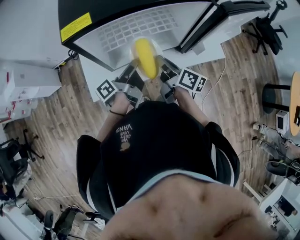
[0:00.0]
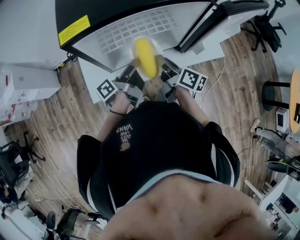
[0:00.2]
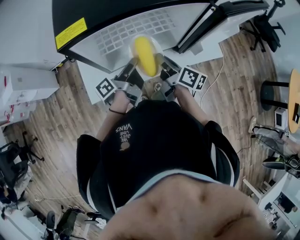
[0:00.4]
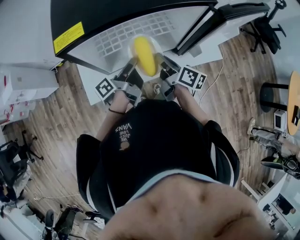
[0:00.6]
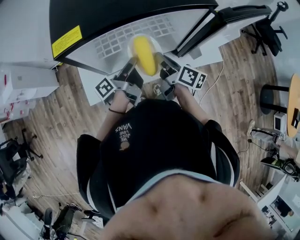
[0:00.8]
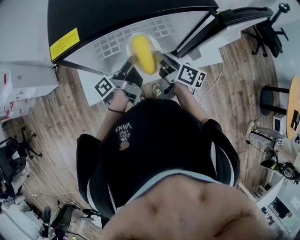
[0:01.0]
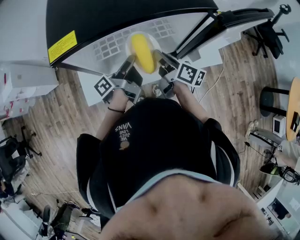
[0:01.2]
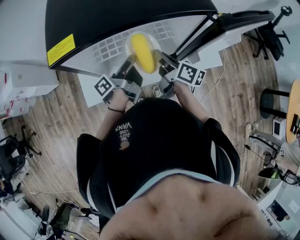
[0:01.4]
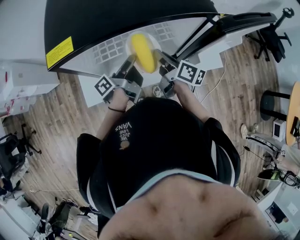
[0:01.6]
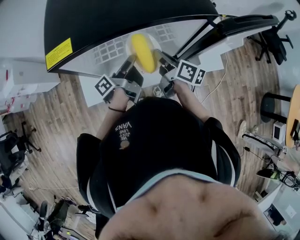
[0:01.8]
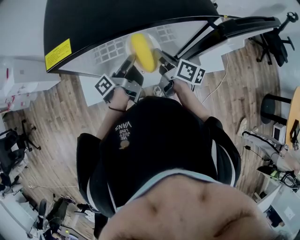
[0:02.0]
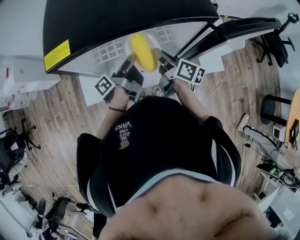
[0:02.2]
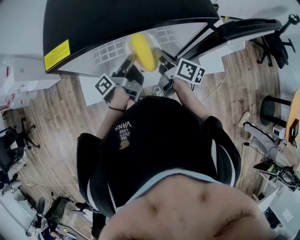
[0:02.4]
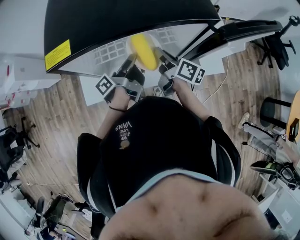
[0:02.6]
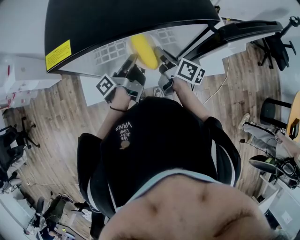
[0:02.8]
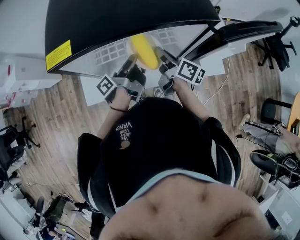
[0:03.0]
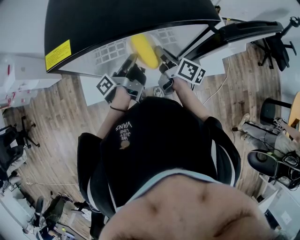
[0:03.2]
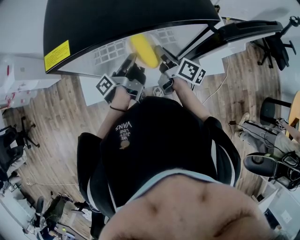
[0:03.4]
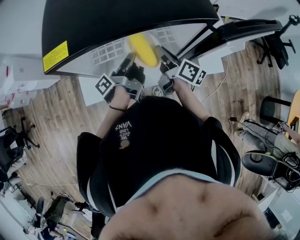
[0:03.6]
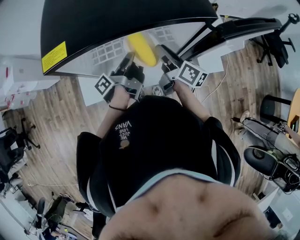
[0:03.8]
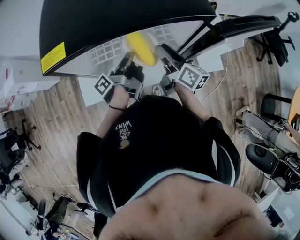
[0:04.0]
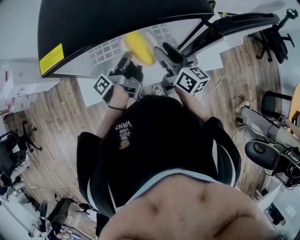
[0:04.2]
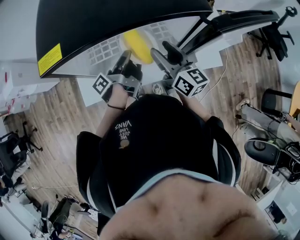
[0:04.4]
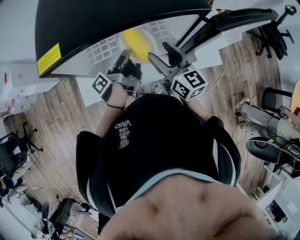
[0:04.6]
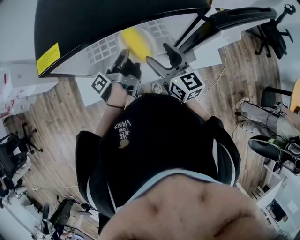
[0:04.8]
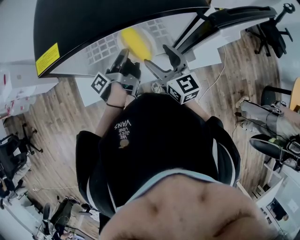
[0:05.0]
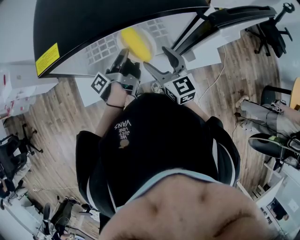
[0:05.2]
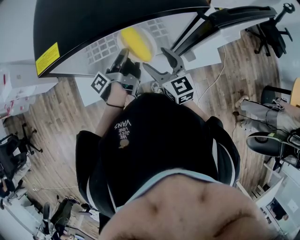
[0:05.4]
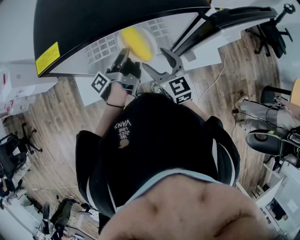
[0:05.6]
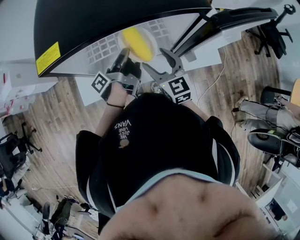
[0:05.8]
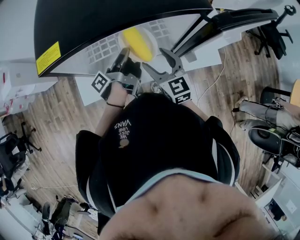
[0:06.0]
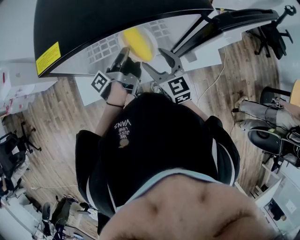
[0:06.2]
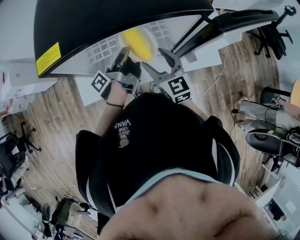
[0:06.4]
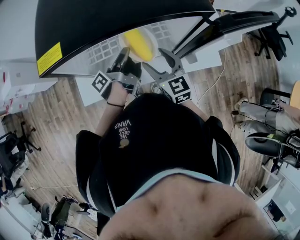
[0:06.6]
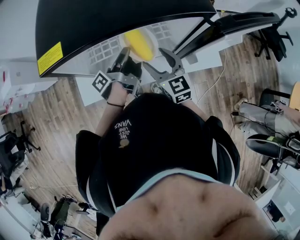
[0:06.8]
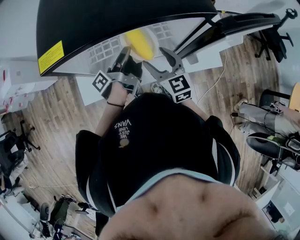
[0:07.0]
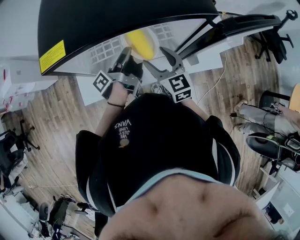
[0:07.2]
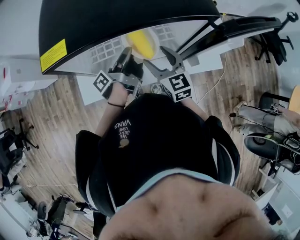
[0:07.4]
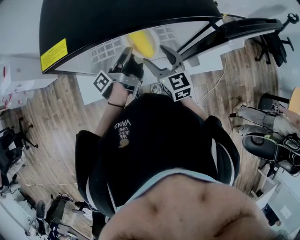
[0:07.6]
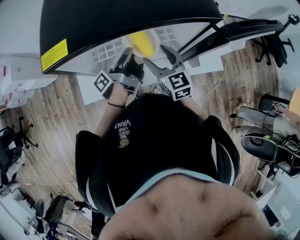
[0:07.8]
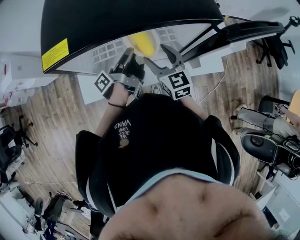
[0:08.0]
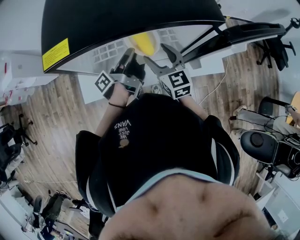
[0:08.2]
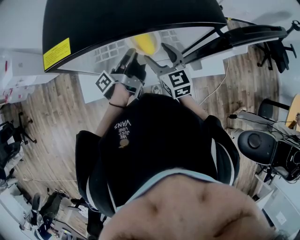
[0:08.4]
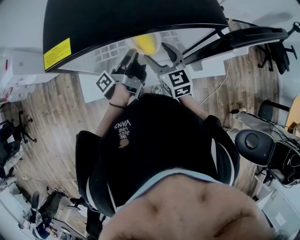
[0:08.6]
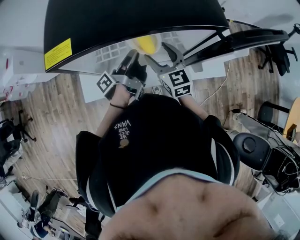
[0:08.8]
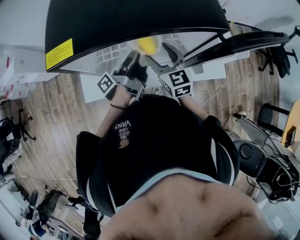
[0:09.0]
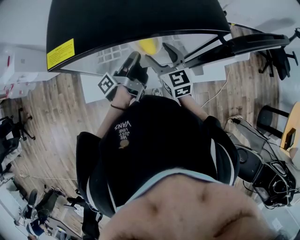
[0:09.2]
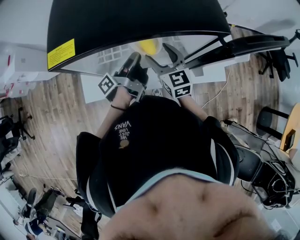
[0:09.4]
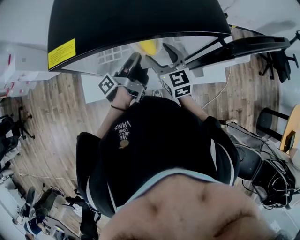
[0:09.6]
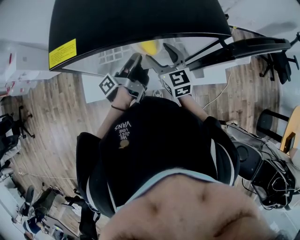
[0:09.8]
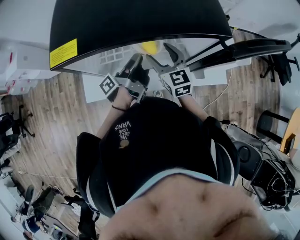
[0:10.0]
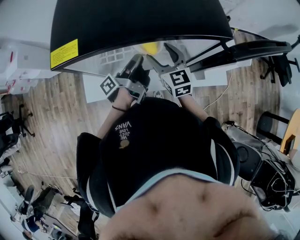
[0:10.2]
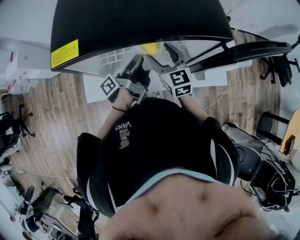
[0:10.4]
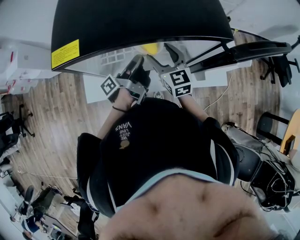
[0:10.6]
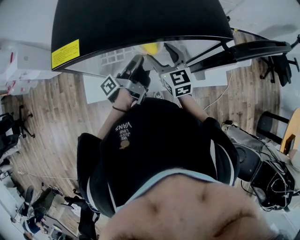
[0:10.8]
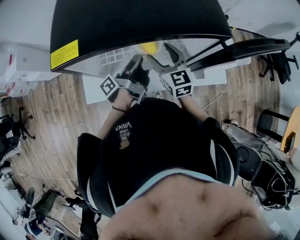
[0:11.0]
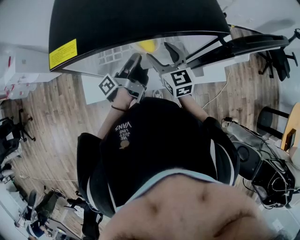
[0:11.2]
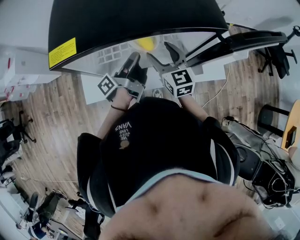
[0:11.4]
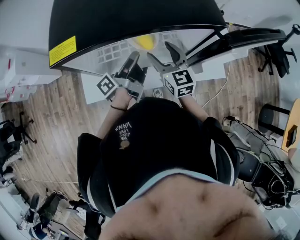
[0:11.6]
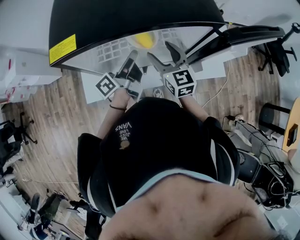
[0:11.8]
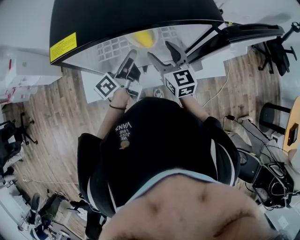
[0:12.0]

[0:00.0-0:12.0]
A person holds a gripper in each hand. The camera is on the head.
0.0 to 1.6 s: The right gripper shifts by some 10 cm.
3.0 to 4.4 s: The right gripper moves upward, some 5 cm, turns by about 30 degrees, and opens its fingers.
4.4 to 6.0 s: The right gripper changes place by about 5 cm, and rotates roughly 30 degrees.

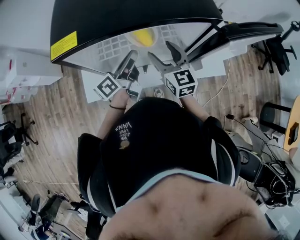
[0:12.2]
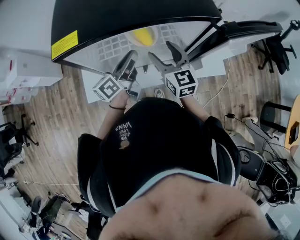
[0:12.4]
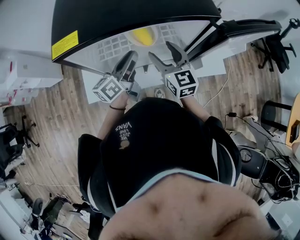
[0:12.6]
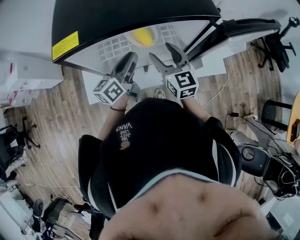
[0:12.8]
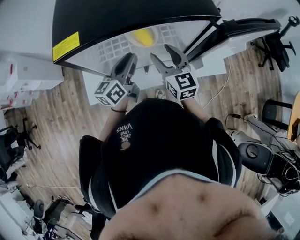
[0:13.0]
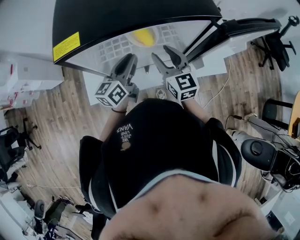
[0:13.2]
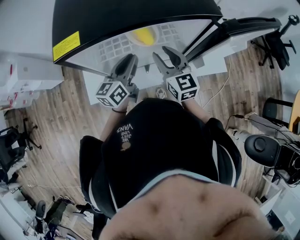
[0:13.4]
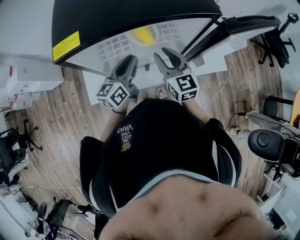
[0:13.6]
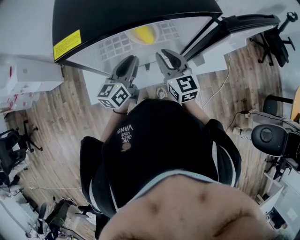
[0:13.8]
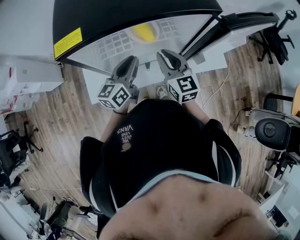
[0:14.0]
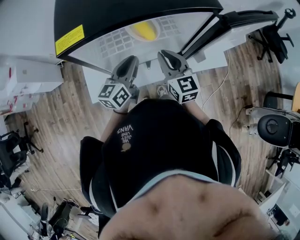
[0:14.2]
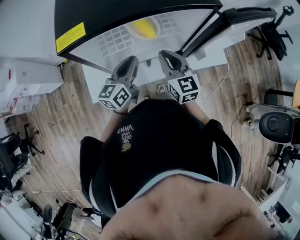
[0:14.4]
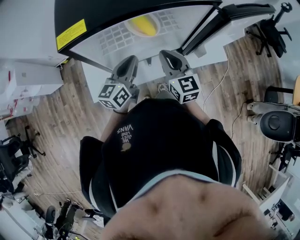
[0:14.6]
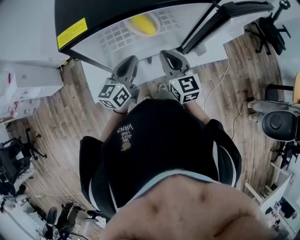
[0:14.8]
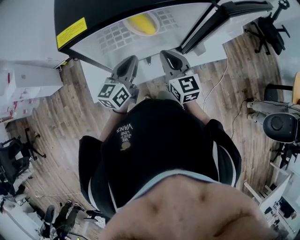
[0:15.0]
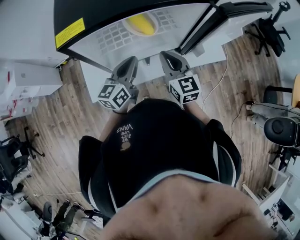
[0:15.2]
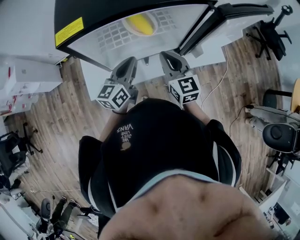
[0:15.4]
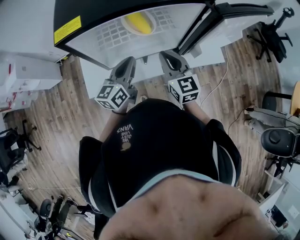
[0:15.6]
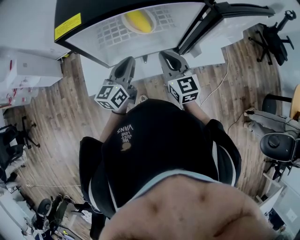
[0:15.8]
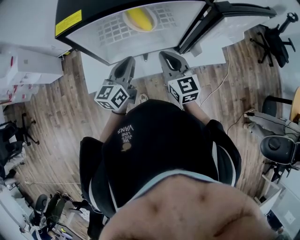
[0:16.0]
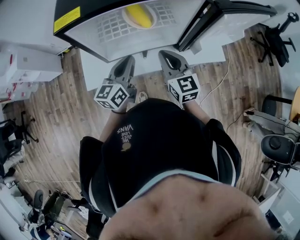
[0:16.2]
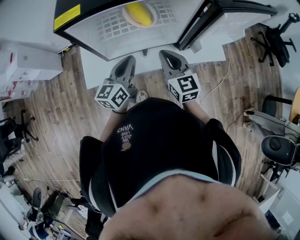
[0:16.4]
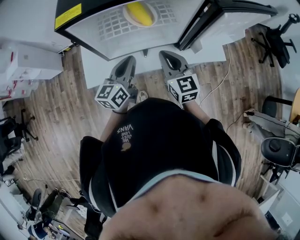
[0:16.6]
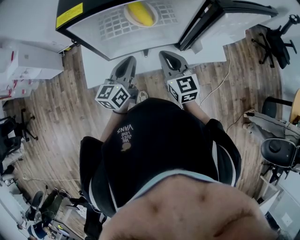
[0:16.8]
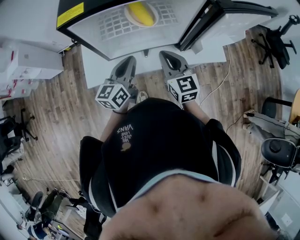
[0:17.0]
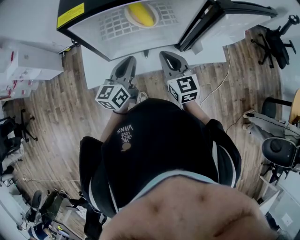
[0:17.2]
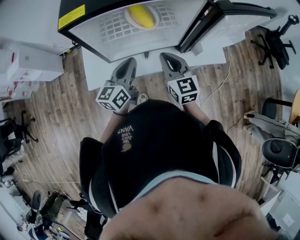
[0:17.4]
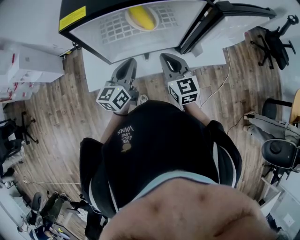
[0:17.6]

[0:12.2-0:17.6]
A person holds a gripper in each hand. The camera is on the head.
12.2 to 13.6 s: The right gripper closes its fingers.

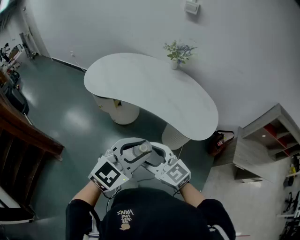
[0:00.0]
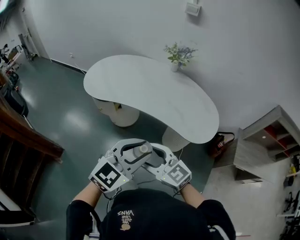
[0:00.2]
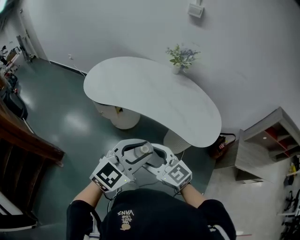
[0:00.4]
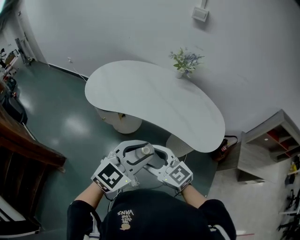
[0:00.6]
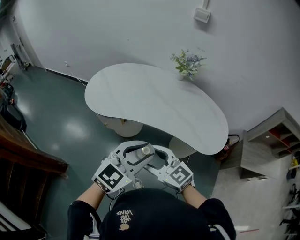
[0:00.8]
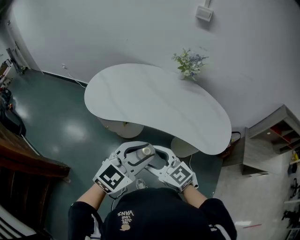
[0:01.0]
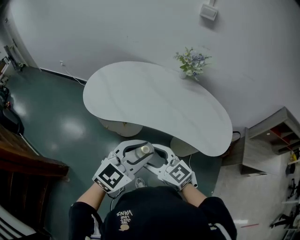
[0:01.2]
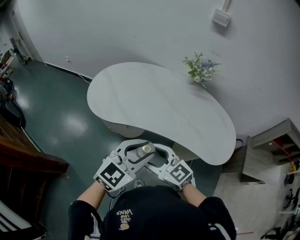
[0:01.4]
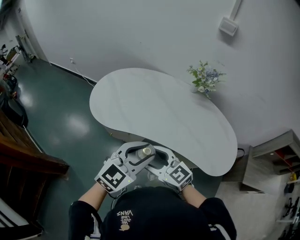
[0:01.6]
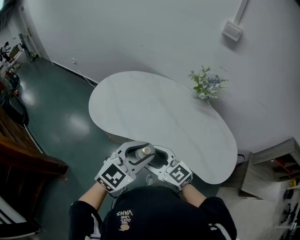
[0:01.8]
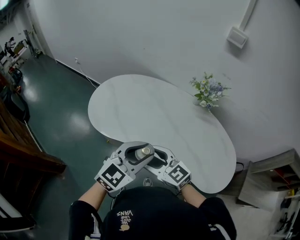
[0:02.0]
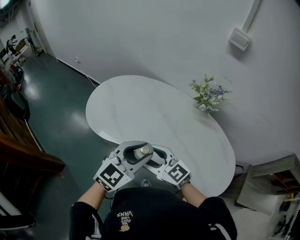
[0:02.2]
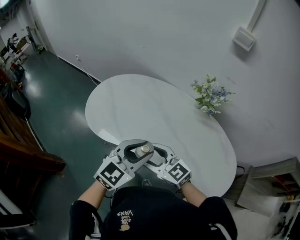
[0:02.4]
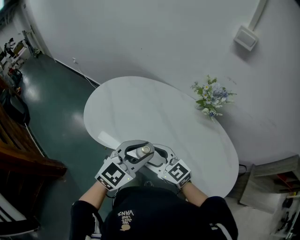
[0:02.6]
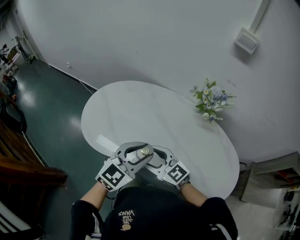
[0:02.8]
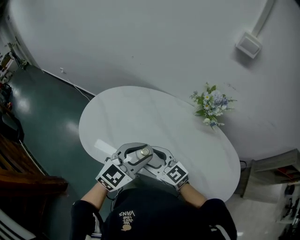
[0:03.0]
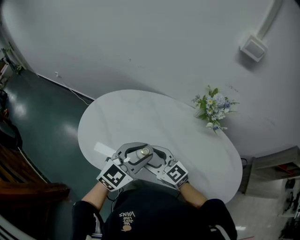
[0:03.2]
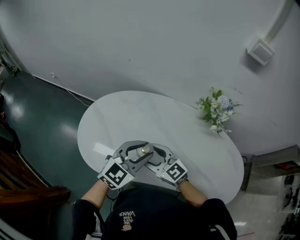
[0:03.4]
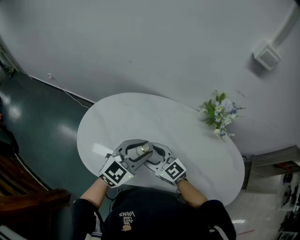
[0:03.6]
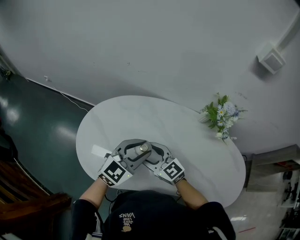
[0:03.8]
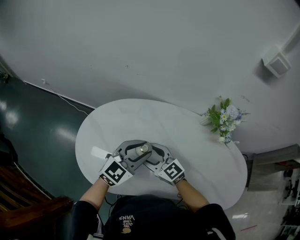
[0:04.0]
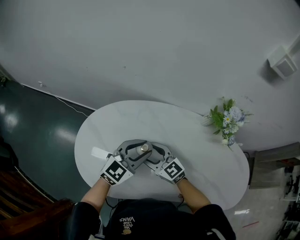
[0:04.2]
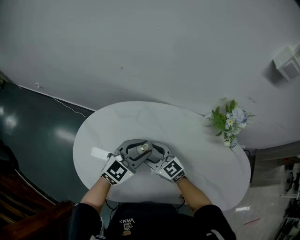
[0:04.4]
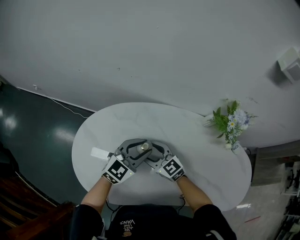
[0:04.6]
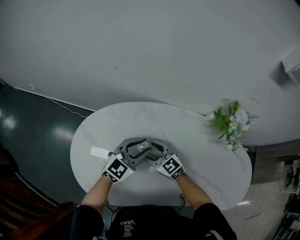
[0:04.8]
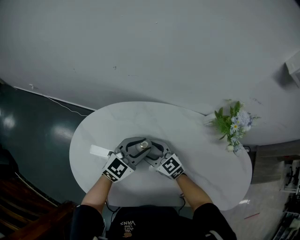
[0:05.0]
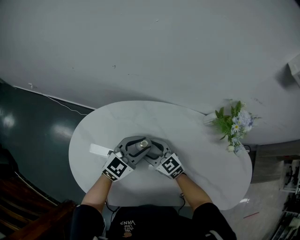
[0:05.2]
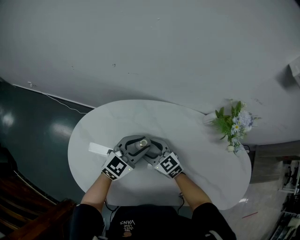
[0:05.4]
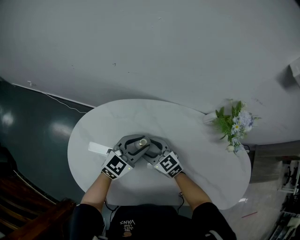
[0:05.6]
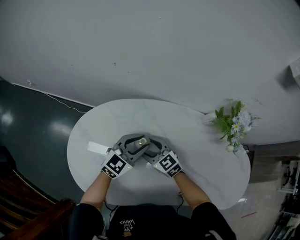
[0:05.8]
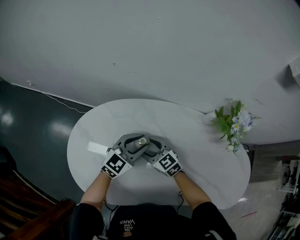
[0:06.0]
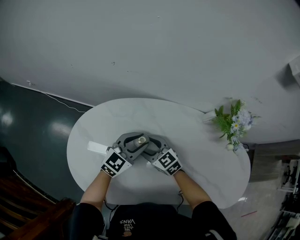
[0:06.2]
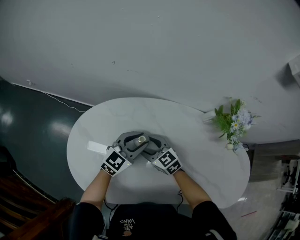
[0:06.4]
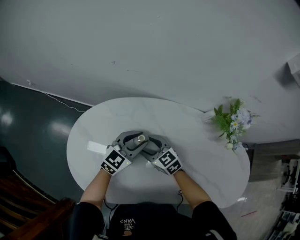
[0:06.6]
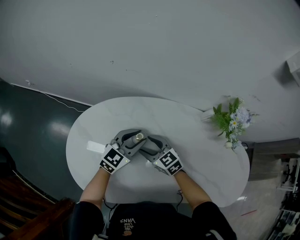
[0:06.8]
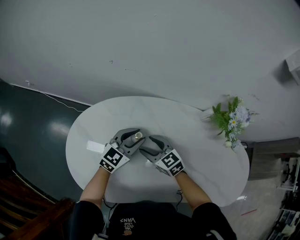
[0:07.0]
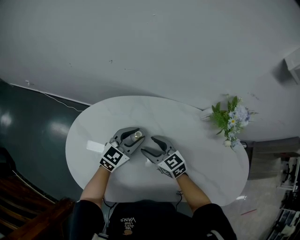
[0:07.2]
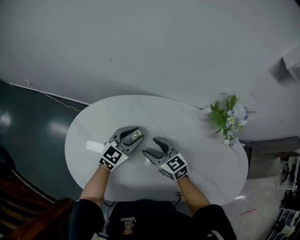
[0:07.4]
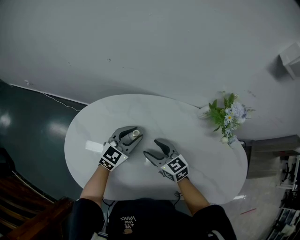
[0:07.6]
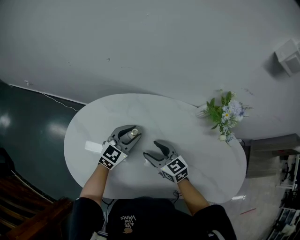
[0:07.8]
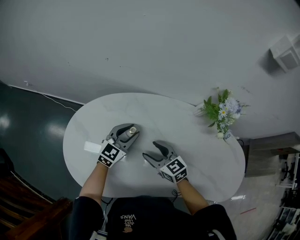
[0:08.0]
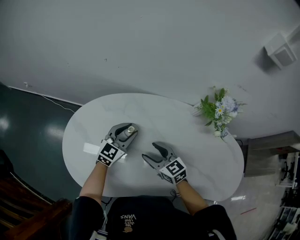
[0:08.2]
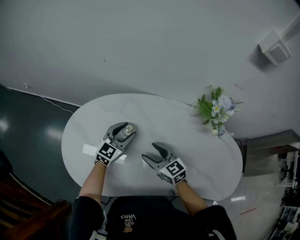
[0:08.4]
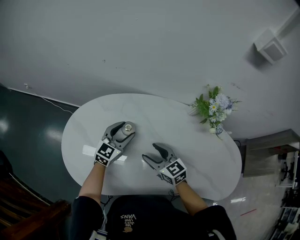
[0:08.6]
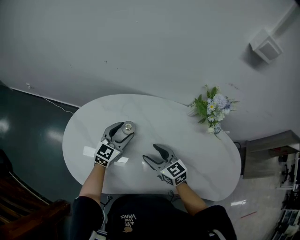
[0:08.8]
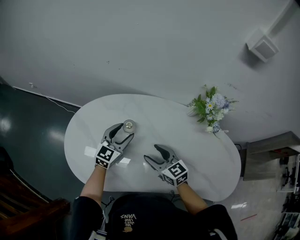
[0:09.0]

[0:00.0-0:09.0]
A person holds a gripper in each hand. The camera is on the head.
0.0 to 1.6 s: The grippers both shift forward and to the left by some 30 cm.
1.6 to 3.0 s: The two grippers go roughly 25 cm forward.
3.0 to 4.4 s: Both grippers move forward and downward, some 25 cm.
4.4 to 6.0 s: The left gripper heads downward and forward, covering about 10 cm, while the right gripper heads downward, covering approximately 5 cm.
6.0 to 7.6 s: The right gripper goes roughly 5 cm to the right.
7.6 to 9.0 s: The left gripper changes place by roughly 5 cm, and opens; the right gripper travels backward by approximately 10 cm.
